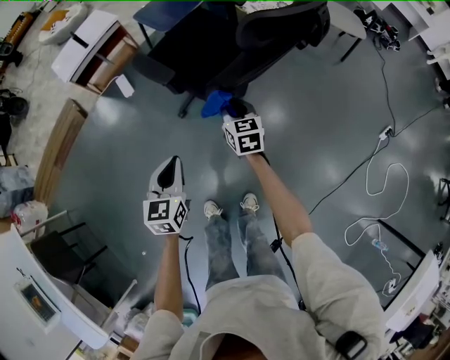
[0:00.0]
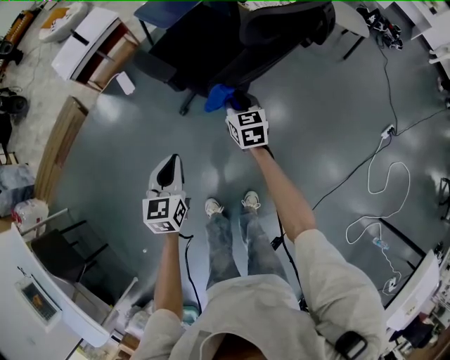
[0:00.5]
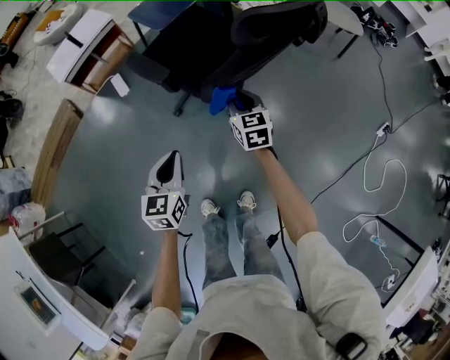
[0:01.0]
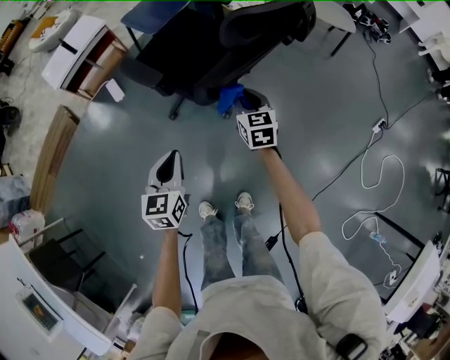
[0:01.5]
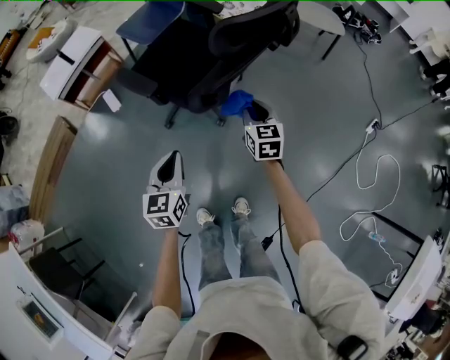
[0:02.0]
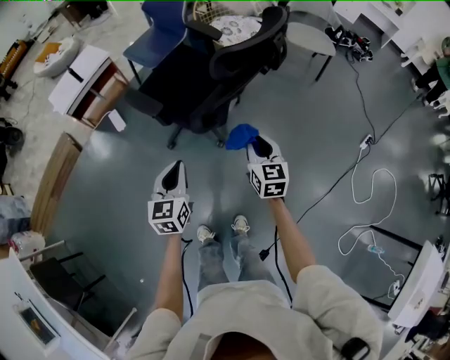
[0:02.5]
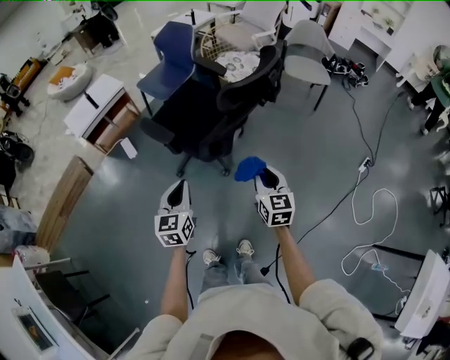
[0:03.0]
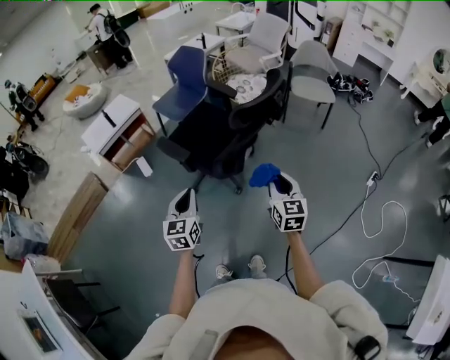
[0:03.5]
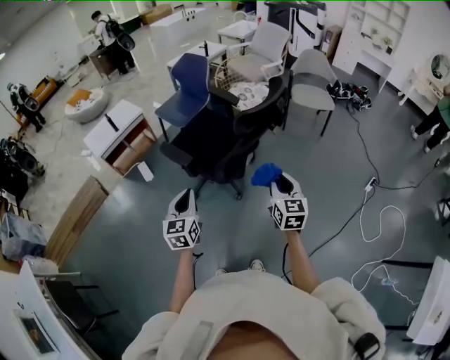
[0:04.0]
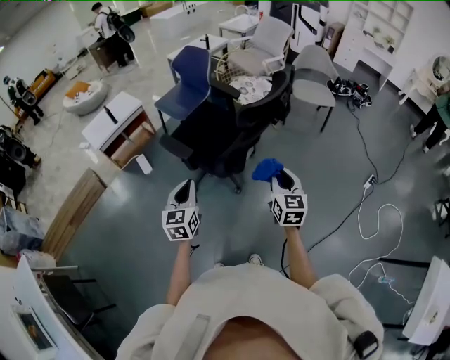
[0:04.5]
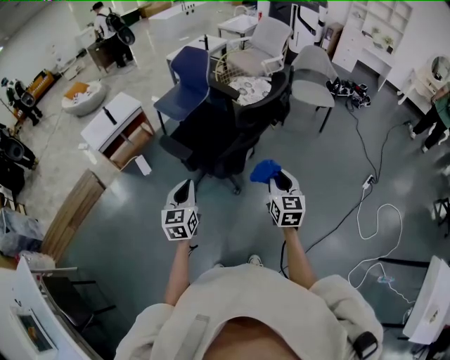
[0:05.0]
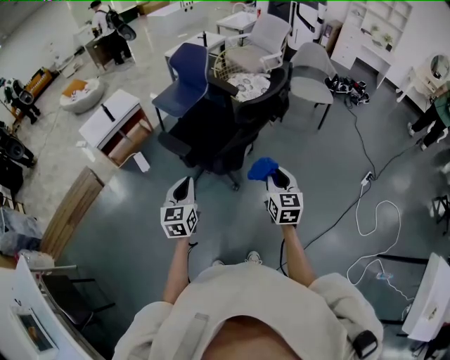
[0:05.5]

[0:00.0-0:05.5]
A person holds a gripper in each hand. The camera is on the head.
0:00.0 to 0:02.0: The right gripper travels to the right by some 15 cm, while the left gripper is displaced to the right by about 5 cm.
0:02.0 to 0:03.5: The left gripper heads upward, covering approximately 15 cm. The right gripper goes some 25 cm upward and backward.
0:03.5 to 0:05.5: The grippers stay close to where they were, moving slightly.

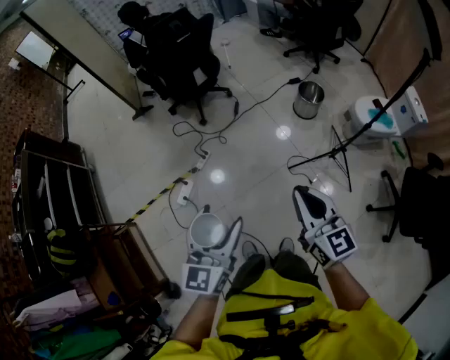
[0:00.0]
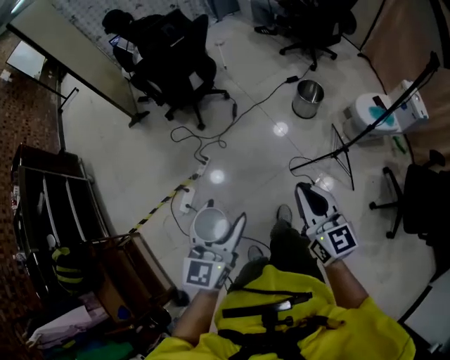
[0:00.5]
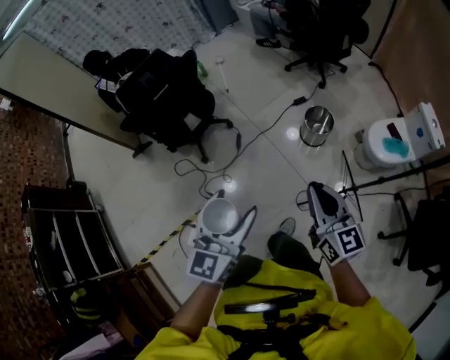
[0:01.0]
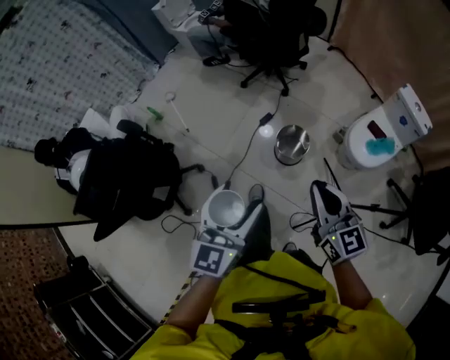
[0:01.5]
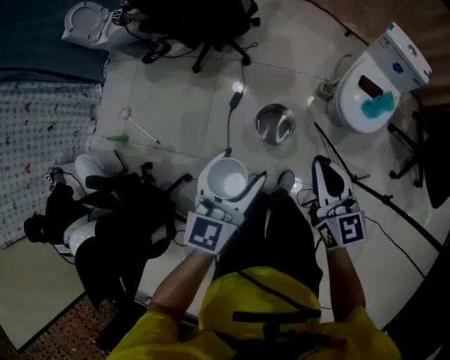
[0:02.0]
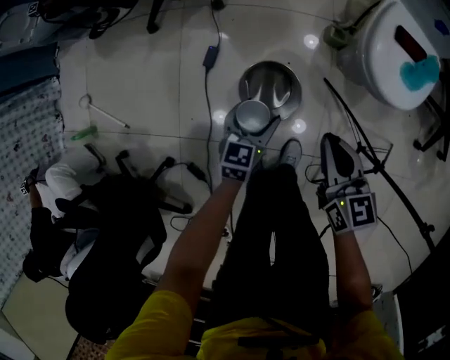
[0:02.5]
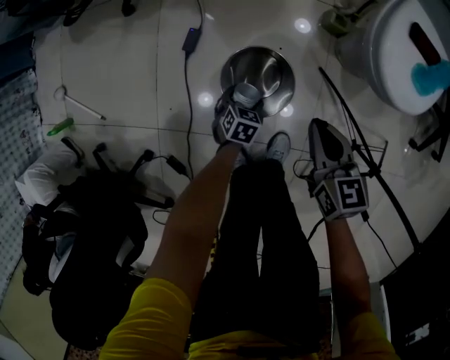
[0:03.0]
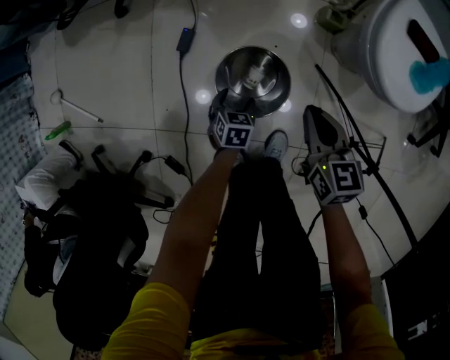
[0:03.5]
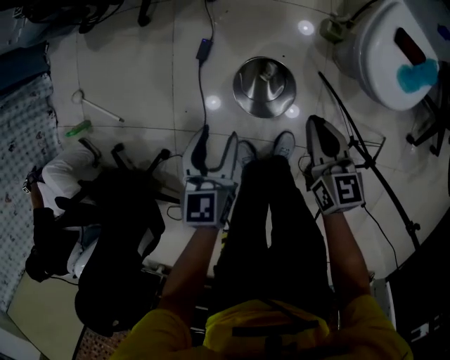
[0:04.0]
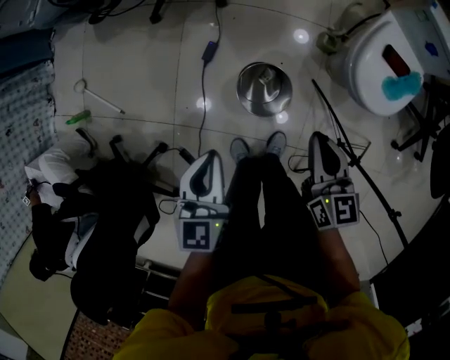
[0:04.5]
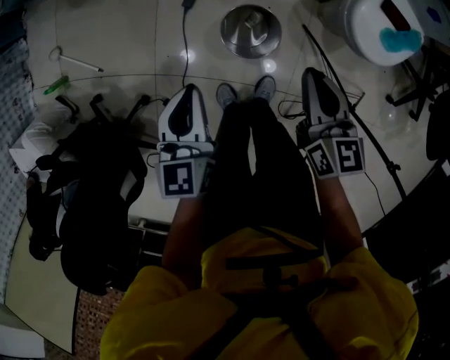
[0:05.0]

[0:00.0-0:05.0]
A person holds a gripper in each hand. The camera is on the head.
0:00.0 to 0:02.5: The pair of grippers is taken about 1 m. The left gripper changes its angle by roughly 70 degrees. Meanwhile the right gripper rotates roughly 60 degrees.
0:02.5 to 0:05.0: The right gripper shifts some 10 cm upward; the left gripper shifts about 25 cm upward and to the left, swivels some 20 degrees, and closes.

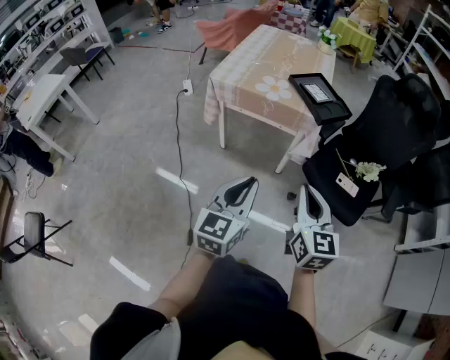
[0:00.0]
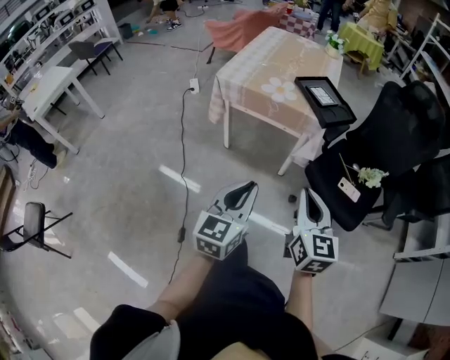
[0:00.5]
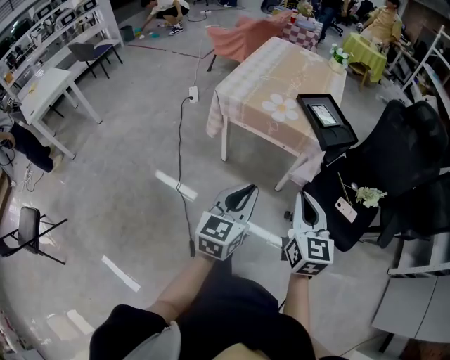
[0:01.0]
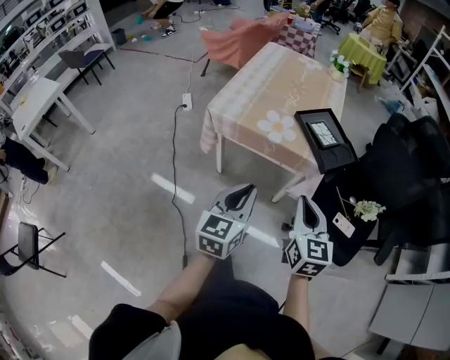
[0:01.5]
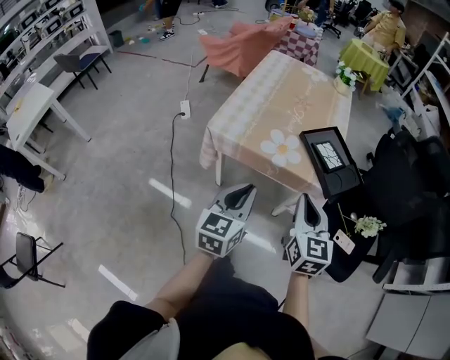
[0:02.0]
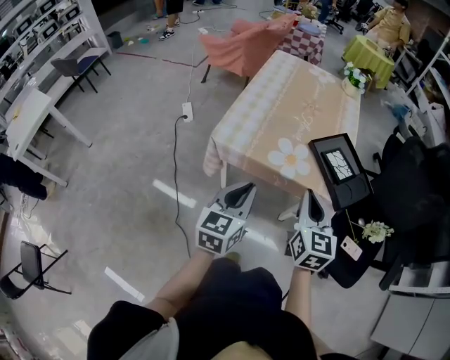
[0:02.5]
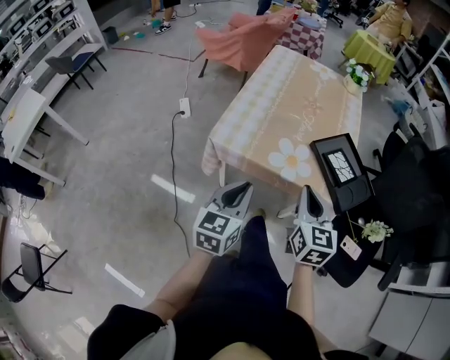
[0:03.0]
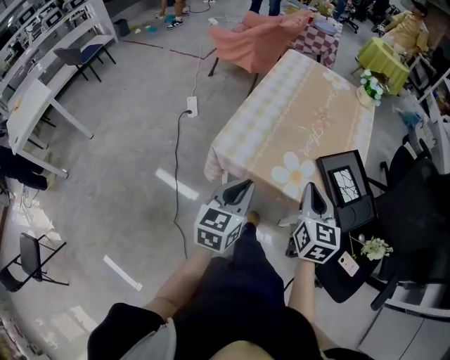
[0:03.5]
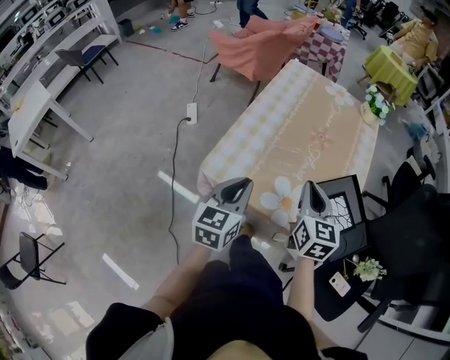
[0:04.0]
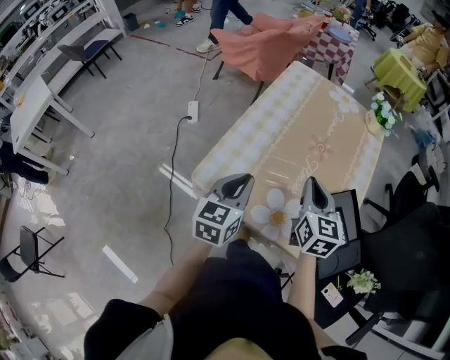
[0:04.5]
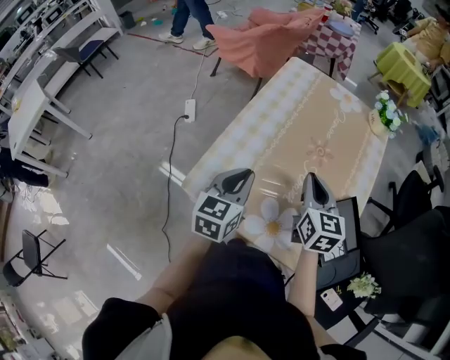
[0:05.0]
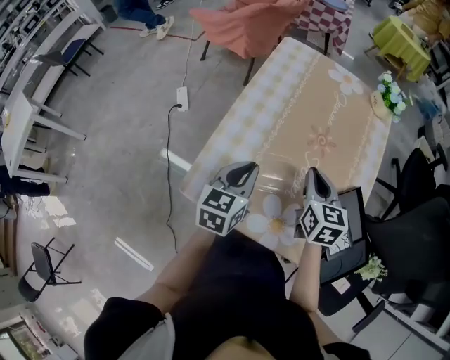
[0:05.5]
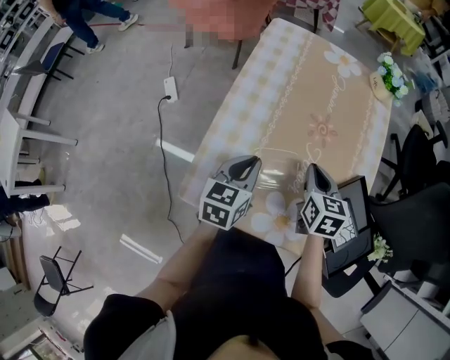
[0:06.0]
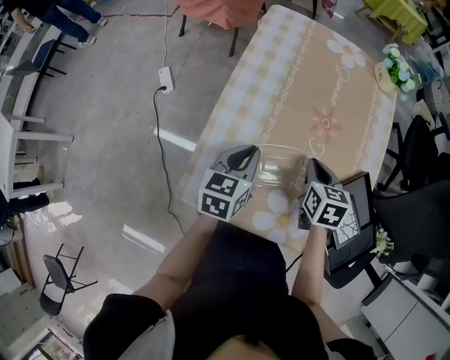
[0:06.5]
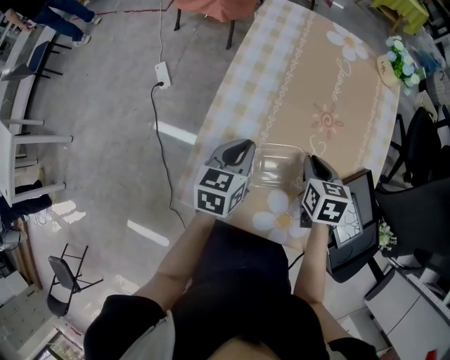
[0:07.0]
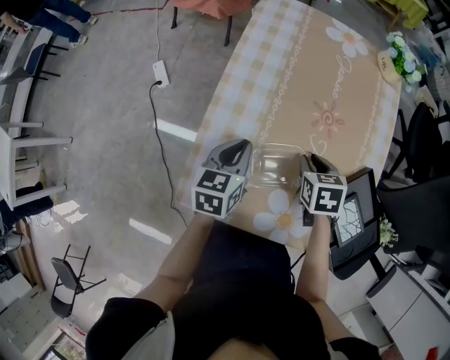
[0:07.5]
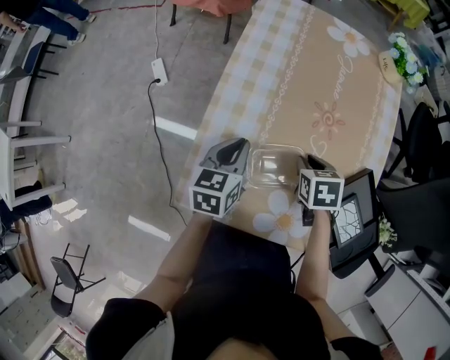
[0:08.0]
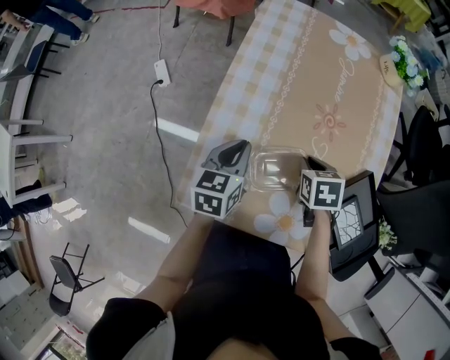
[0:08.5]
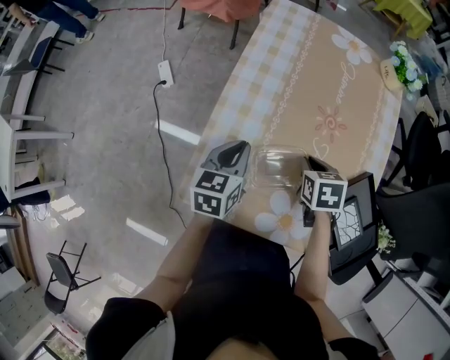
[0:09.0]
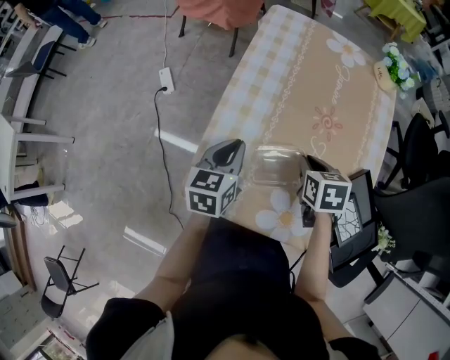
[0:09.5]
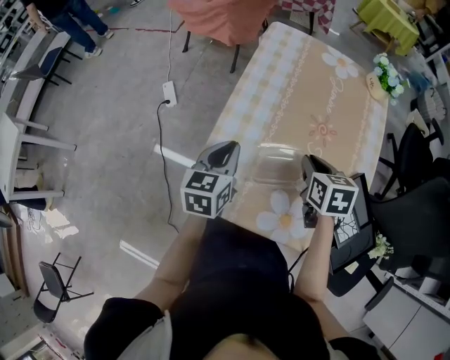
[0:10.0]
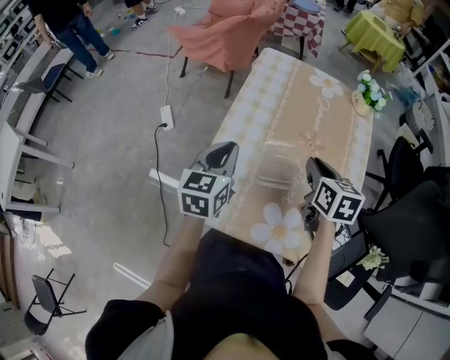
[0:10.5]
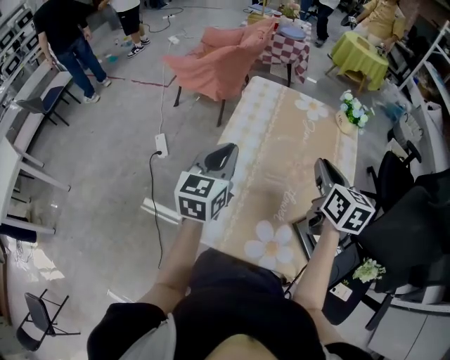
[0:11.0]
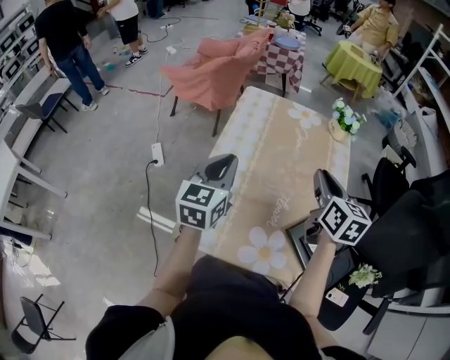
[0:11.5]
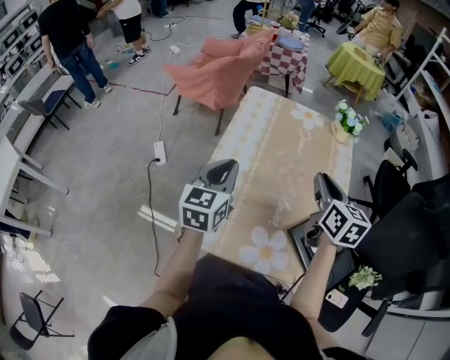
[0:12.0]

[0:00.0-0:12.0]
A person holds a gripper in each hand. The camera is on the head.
0:00.0 to 0:02.0: Both grippers travel together forward, some 25 cm.
0:02.0 to 0:04.0: Both grippers travel together forward, roughly 25 cm.
0:04.0 to 0:06.0: Both grippers travel together forward and downward, about 20 cm. The right gripper turns by some 20 degrees.
0:06.0 to 0:08.0: The left gripper changes place by roughly 5 cm; the right gripper goes roughly 10 cm downward, changes its angle by approximately 30 degrees, and opens its fingers.
0:08.0 to 0:10.0: Both grippers move upward, approximately 10 cm.
0:10.0 to 0:12.0: The right gripper shifts approximately 20 cm upward and to the right, and changes its angle by some 30 degrees, while the left gripper is displaced upward by some 10 cm.

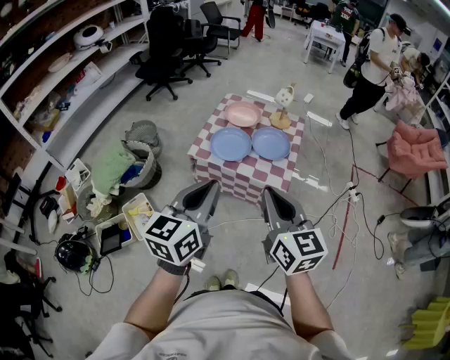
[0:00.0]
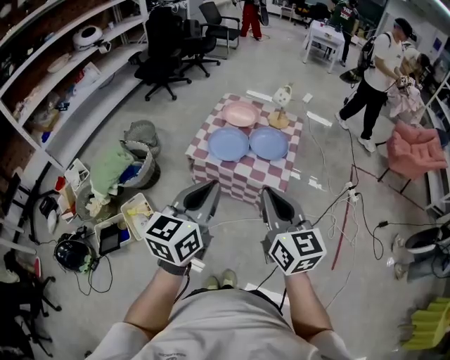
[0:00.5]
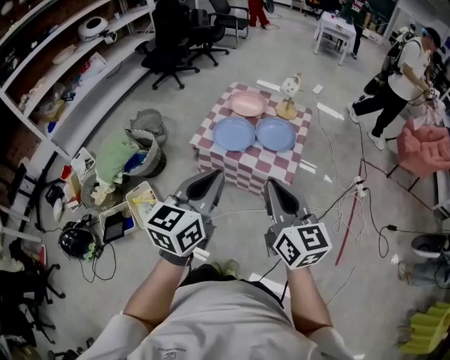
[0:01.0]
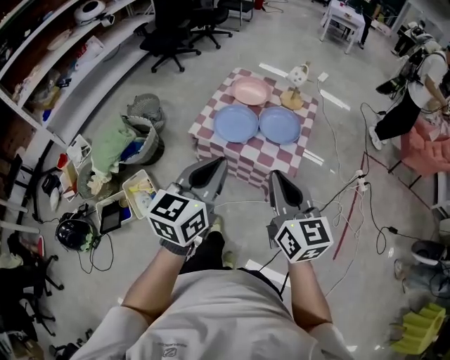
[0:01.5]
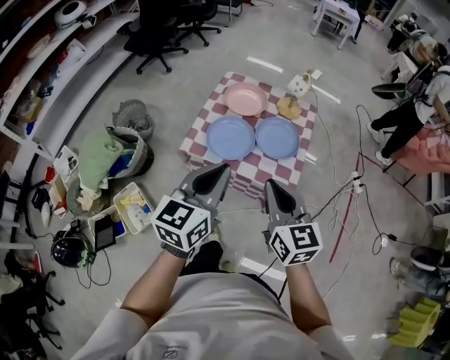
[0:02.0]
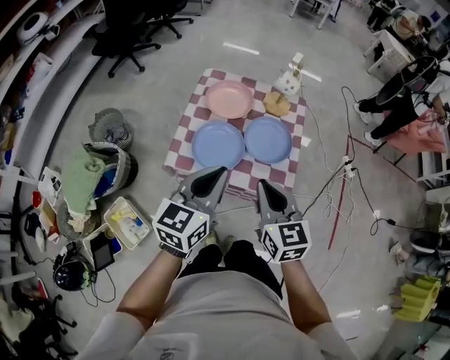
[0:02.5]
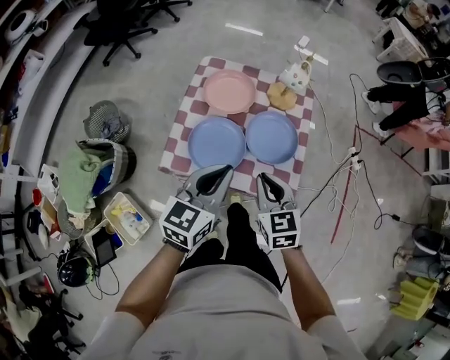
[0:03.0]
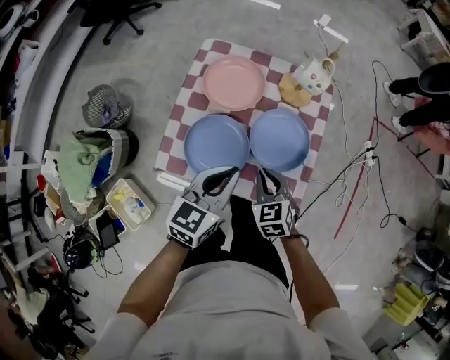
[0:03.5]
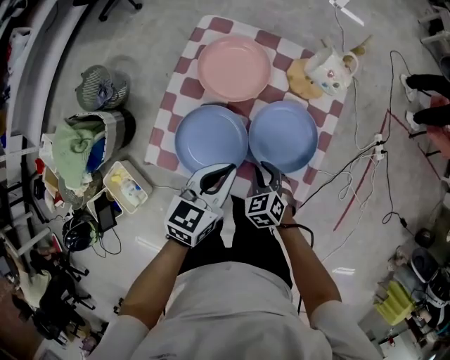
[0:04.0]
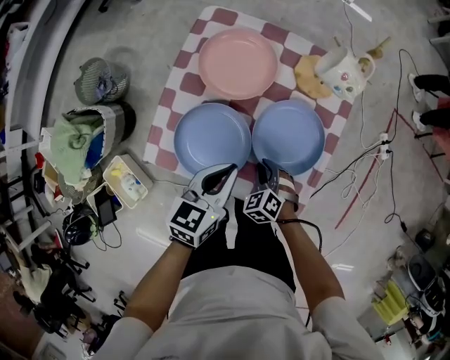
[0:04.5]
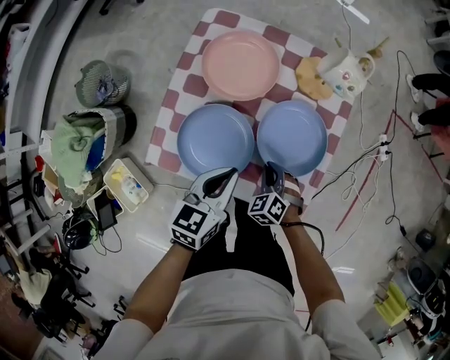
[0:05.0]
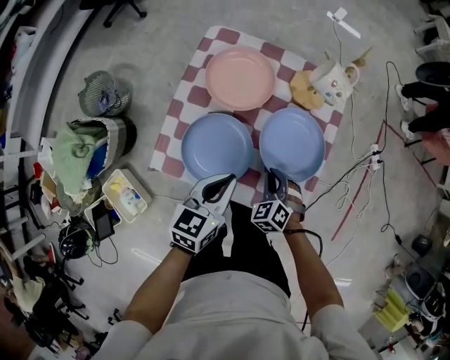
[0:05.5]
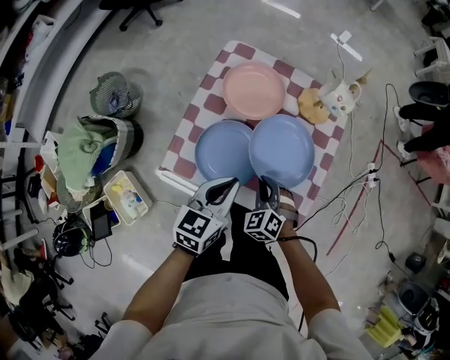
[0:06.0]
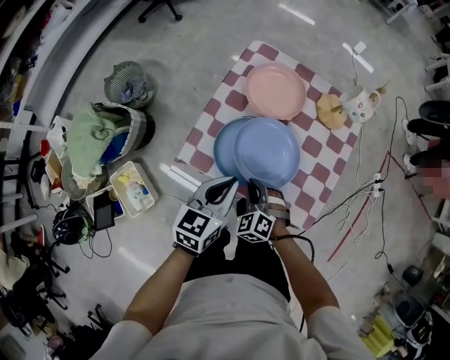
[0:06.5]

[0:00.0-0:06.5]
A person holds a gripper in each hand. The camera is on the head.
0:00.0 to 0:02.0: The right gripper travels forward and downward by some 20 cm, while the left gripper moves forward, roughly 20 cm.
0:02.0 to 0:04.5: The two grippers go roughly 50 cm downward and forward. The left gripper rotates approximately 20 degrees; the right gripper tips its fingers downward by about 50 degrees.
0:04.5 to 0:06.5: The right gripper goes roughly 15 cm to the left, upward and backward. The left gripper shifts about 10 cm to the left and backward.
